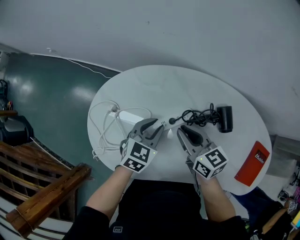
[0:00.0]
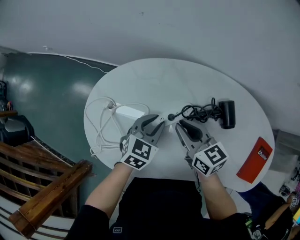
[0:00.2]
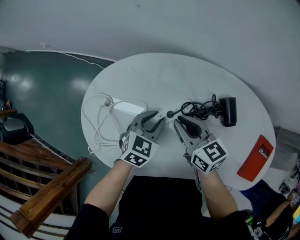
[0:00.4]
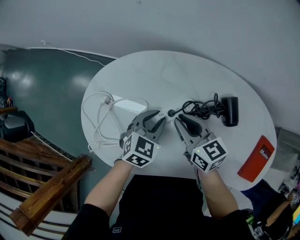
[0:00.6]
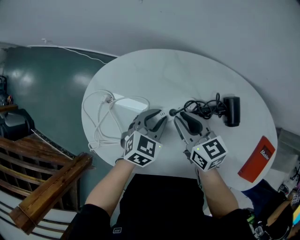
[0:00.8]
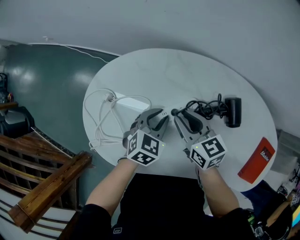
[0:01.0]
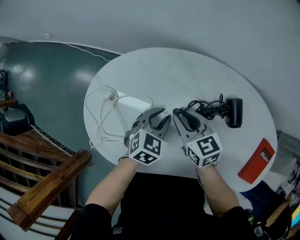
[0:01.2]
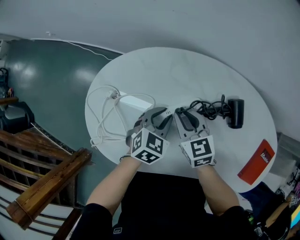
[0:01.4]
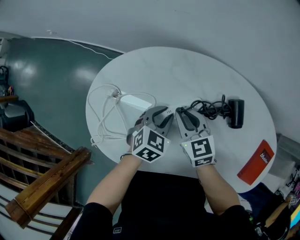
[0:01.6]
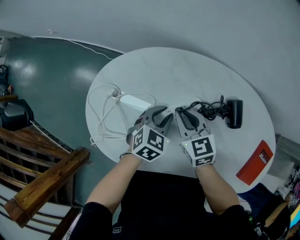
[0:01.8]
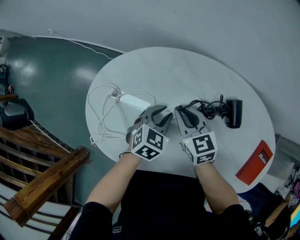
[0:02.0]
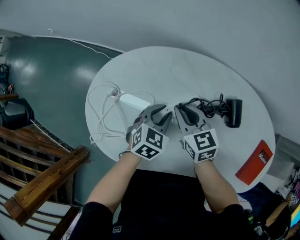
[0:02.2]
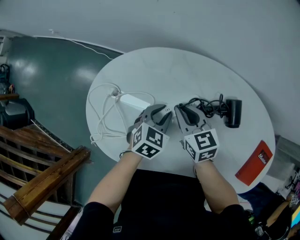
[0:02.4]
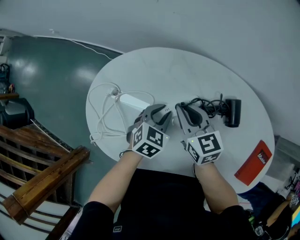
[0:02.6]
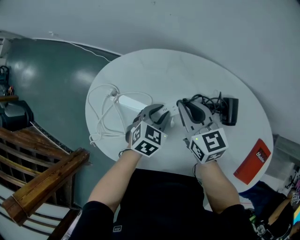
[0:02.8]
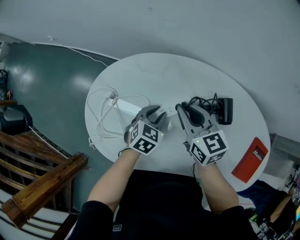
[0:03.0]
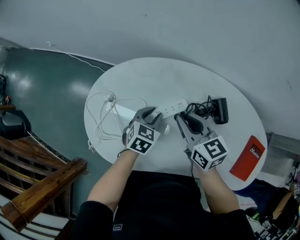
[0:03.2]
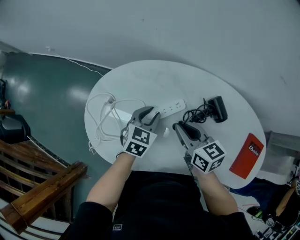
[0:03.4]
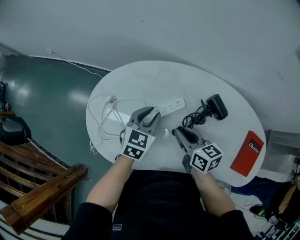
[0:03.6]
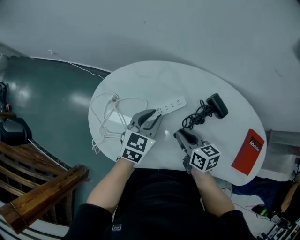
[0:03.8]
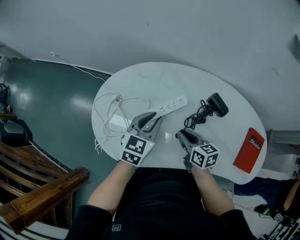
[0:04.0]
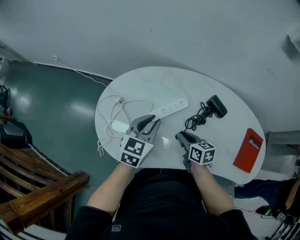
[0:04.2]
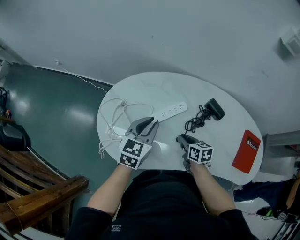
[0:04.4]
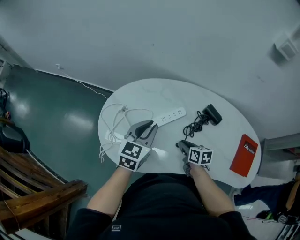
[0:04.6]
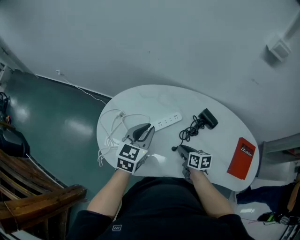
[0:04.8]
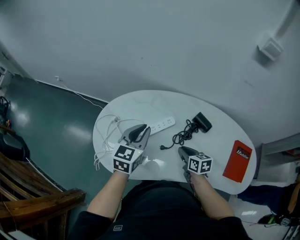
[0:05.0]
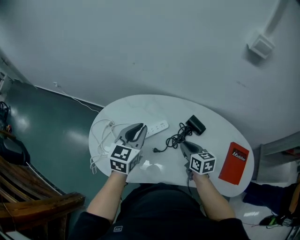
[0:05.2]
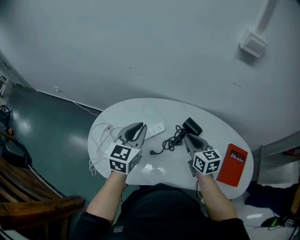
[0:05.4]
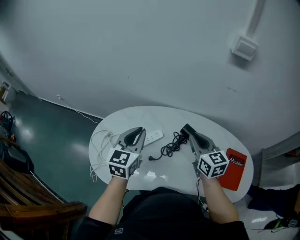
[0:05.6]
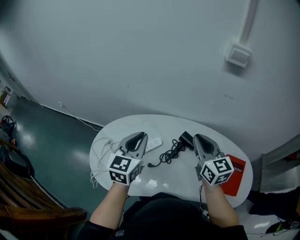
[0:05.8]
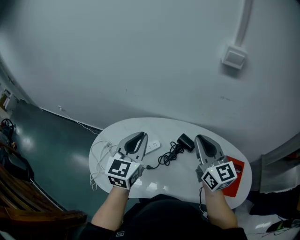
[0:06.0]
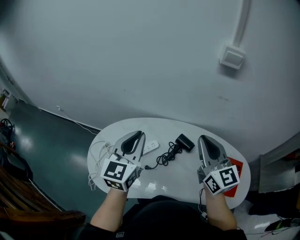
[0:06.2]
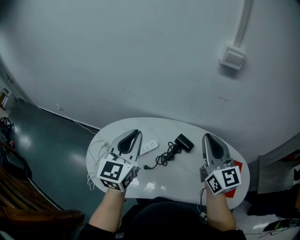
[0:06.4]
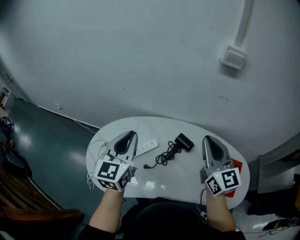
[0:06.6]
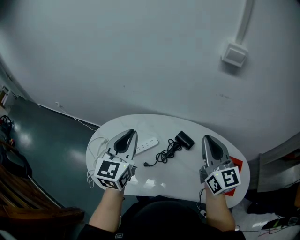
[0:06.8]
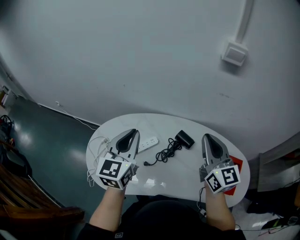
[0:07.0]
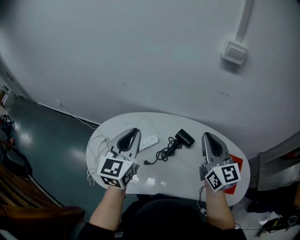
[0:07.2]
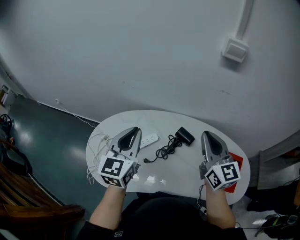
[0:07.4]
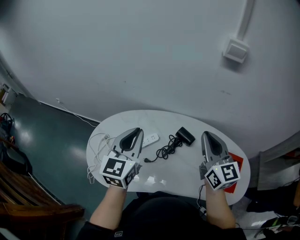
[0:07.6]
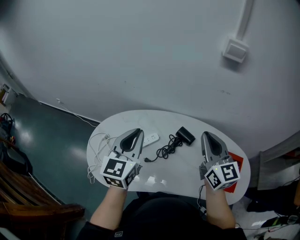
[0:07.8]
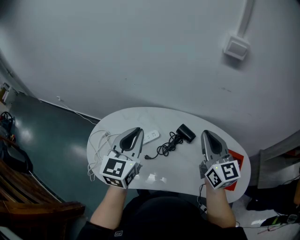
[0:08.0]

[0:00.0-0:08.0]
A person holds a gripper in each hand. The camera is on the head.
0:00.0 to 0:01.6: The right gripper moves downward, some 5 cm, and changes its angle by some 20 degrees.
0:01.6 to 0:03.2: The right gripper heads upward, covering approximately 10 cm.
0:03.2 to 0:04.8: The right gripper is displaced backward and downward by roughly 15 cm, and swivels roughly 30 degrees. The left gripper goes roughly 15 cm upward, and swivels roughly 30 degrees.
0:04.8 to 0:06.4: The left gripper is displaced upward and to the right by about 20 cm, and turns by about 20 degrees, while the right gripper travels upward and to the right by approximately 40 cm, and points its fingers about 40 degrees further upward.
0:06.4 to 0:08.0: There are only small adjustments of the grippers.

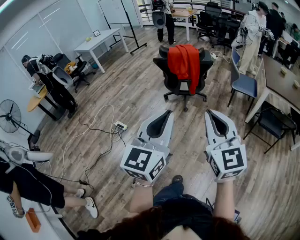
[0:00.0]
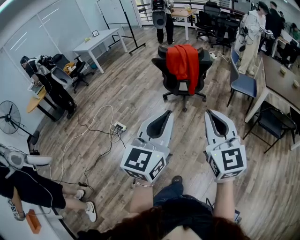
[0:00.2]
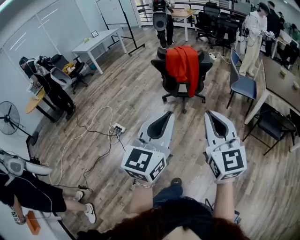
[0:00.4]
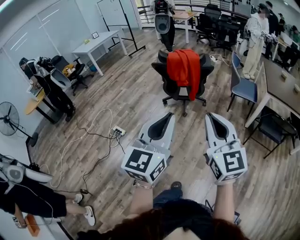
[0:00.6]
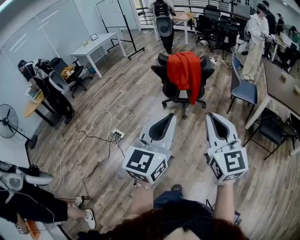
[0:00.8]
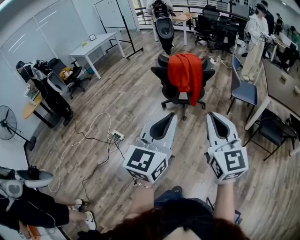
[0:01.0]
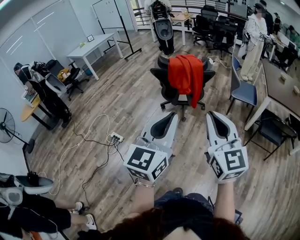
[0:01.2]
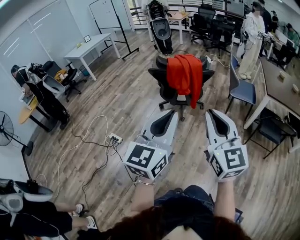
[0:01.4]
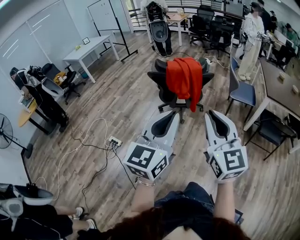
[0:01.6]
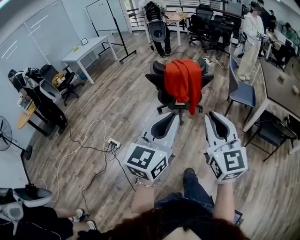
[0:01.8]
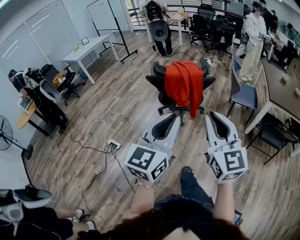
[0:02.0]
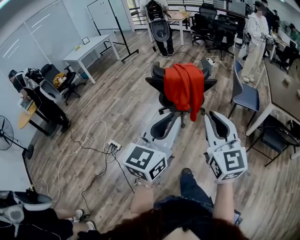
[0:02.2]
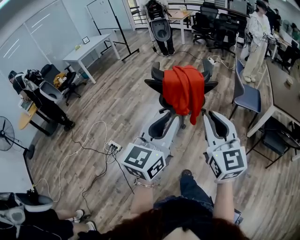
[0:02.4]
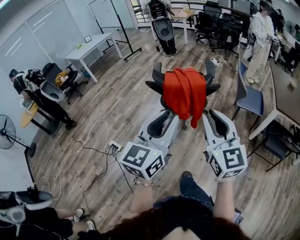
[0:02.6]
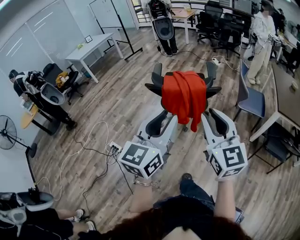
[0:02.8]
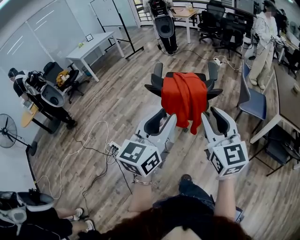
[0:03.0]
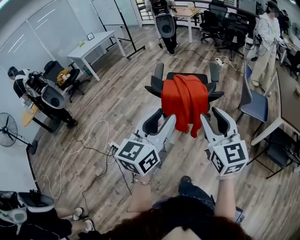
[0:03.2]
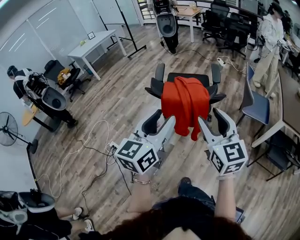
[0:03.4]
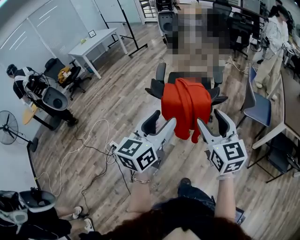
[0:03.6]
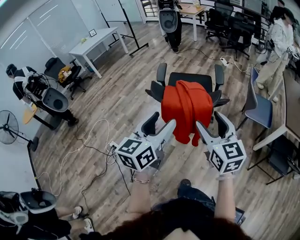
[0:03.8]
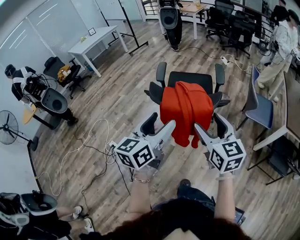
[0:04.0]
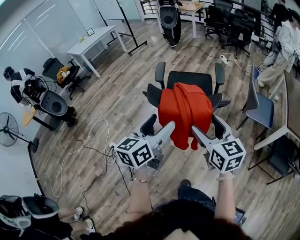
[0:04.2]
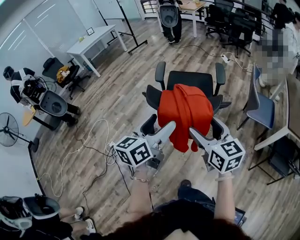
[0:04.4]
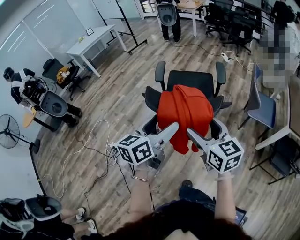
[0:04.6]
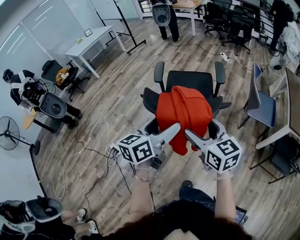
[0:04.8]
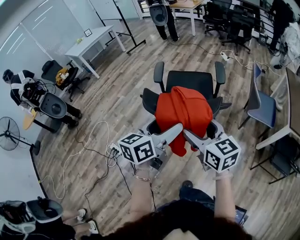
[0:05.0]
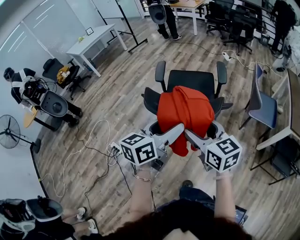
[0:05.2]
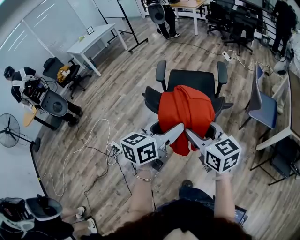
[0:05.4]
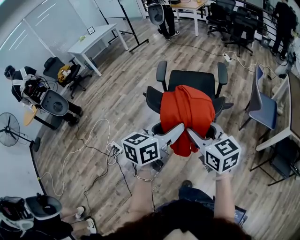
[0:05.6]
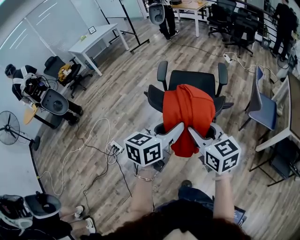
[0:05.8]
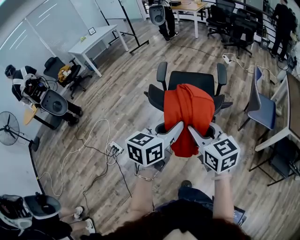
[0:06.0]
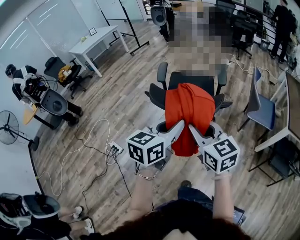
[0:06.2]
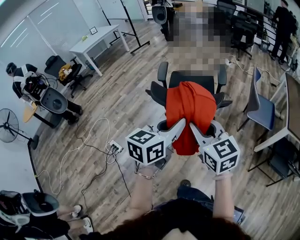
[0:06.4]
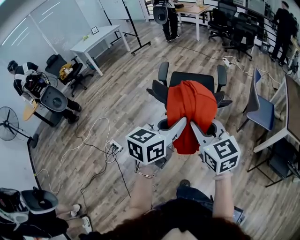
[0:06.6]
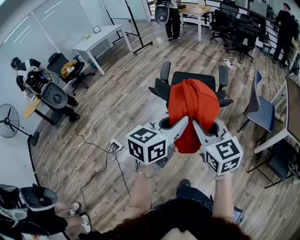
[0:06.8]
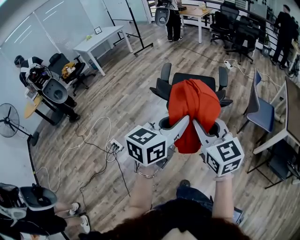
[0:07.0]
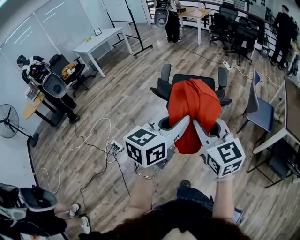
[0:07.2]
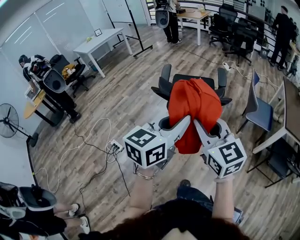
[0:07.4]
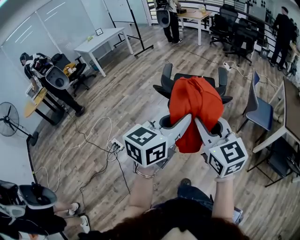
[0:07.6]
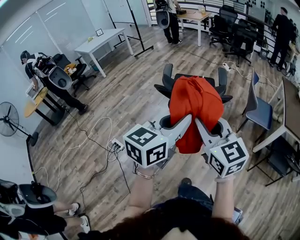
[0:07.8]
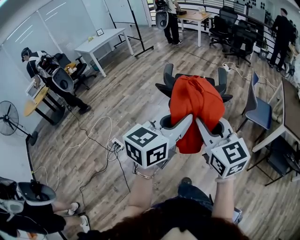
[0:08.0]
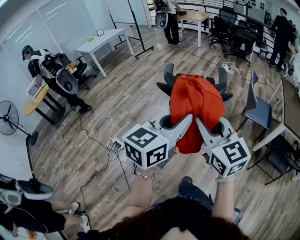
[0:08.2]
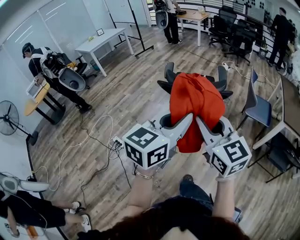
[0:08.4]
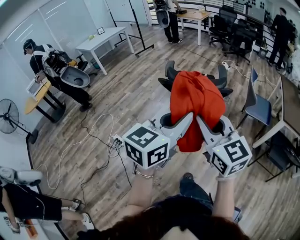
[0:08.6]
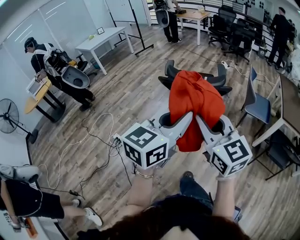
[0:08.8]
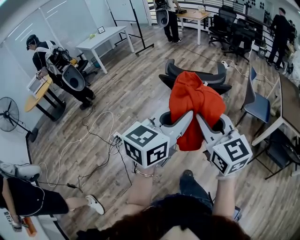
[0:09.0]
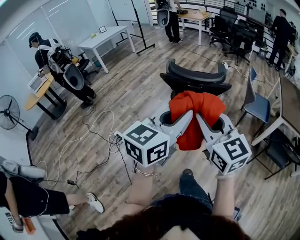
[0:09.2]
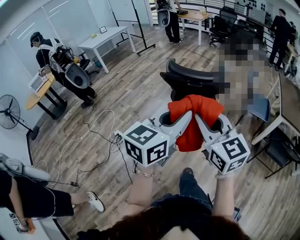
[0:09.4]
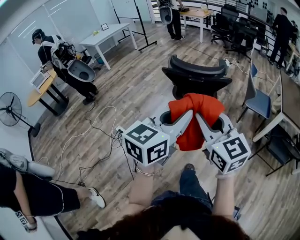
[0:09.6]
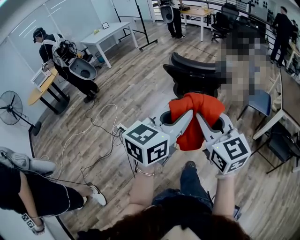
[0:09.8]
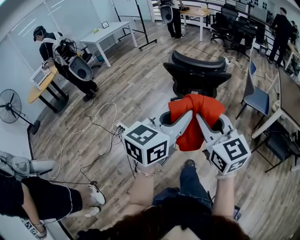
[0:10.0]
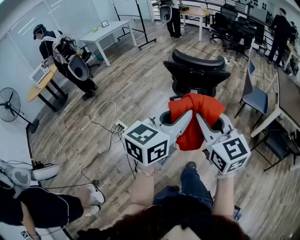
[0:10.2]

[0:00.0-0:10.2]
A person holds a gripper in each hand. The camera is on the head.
0:00.0 to 0:01.4: Both grippers move forward, roughly 15 cm.
0:01.4 to 0:03.0: The grippers both shift forward by about 25 cm.
0:03.0 to 0:04.4: The two grippers go about 20 cm forward and downward. The right gripper swivels roughly 20 degrees, and opens, while the left gripper turns by roughly 20 degrees, and opens its fingers.
0:04.4 to 0:05.8: The right gripper closes up. The left gripper moves about 5 cm, and closes its fingers.
0:05.8 to 0:07.2: The grippers both shift backward and upward by roughly 10 cm.
0:07.2 to 0:08.8: The two grippers go approximately 15 cm backward.
0:08.8 to 0:10.2: Both grippers move backward, some 15 cm.

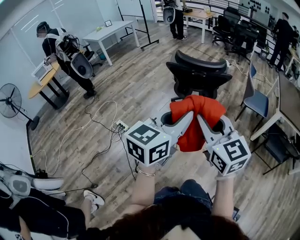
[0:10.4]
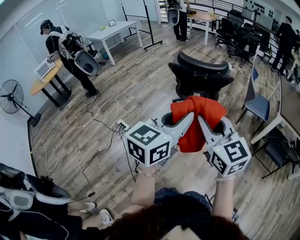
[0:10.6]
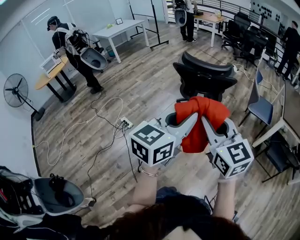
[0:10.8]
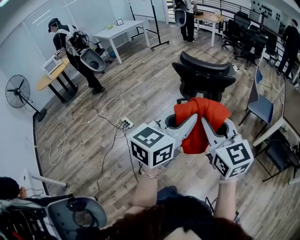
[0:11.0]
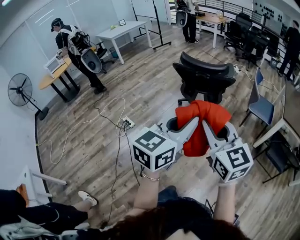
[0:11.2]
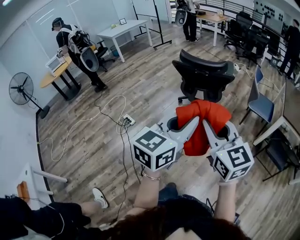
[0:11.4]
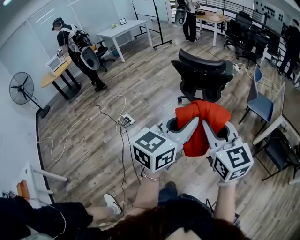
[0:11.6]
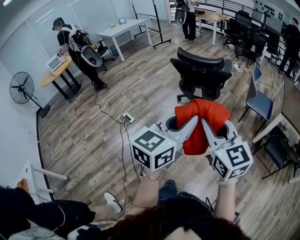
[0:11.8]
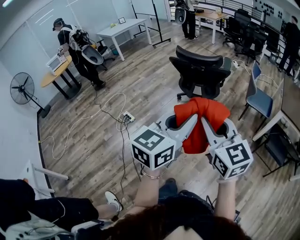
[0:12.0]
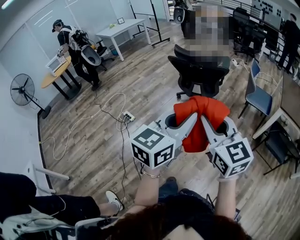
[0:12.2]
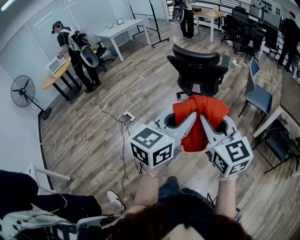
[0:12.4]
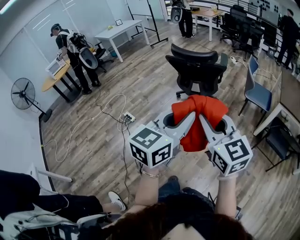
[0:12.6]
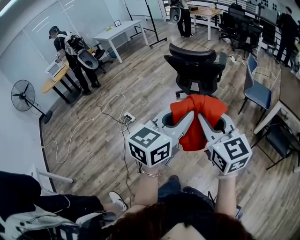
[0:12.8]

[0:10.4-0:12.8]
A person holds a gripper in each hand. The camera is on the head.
0:10.4 to 0:11.6: The grippers both shift to the right and backward by roughly 10 cm.
0:11.6 to 0:12.8: The right gripper shifts by about 5 cm; the left gripper moves about 5 cm.

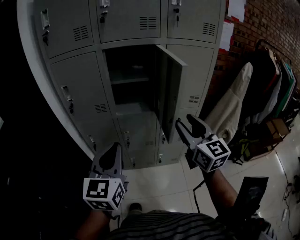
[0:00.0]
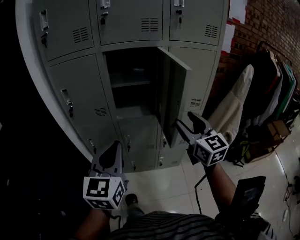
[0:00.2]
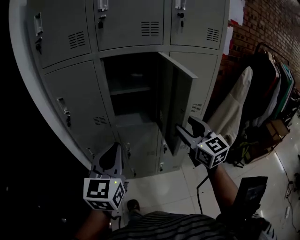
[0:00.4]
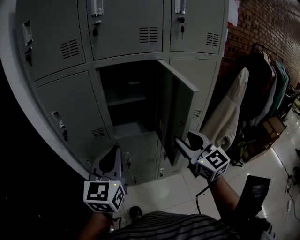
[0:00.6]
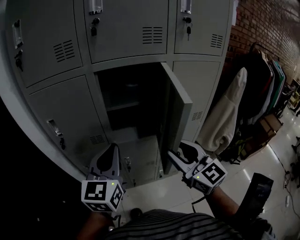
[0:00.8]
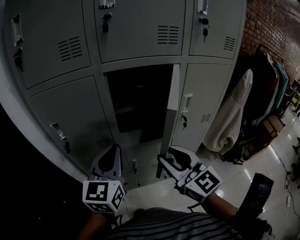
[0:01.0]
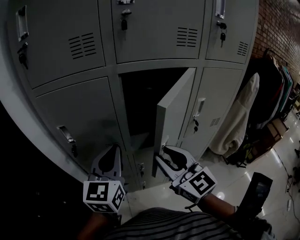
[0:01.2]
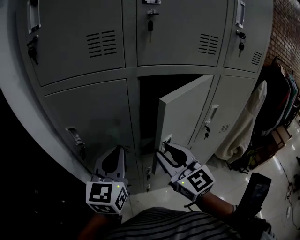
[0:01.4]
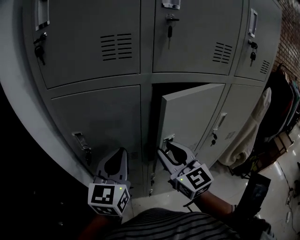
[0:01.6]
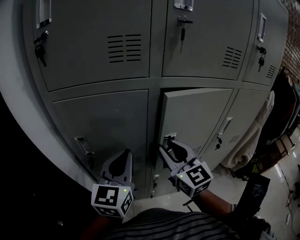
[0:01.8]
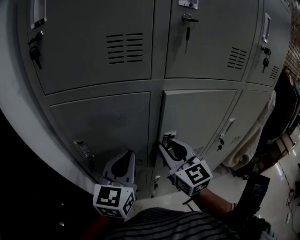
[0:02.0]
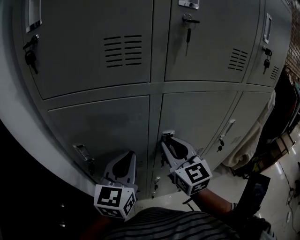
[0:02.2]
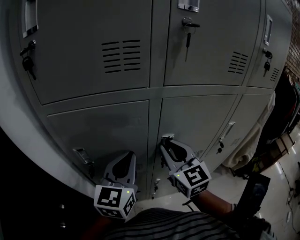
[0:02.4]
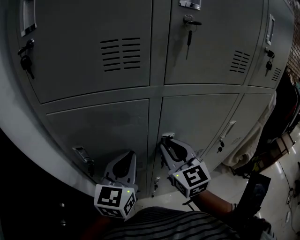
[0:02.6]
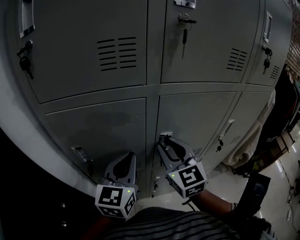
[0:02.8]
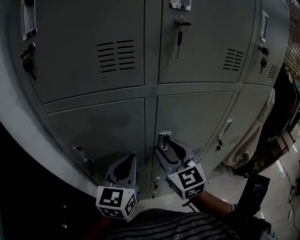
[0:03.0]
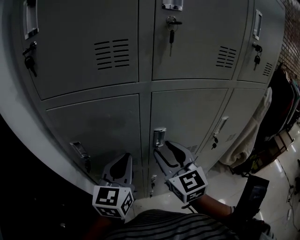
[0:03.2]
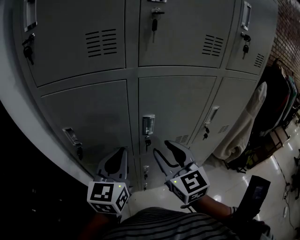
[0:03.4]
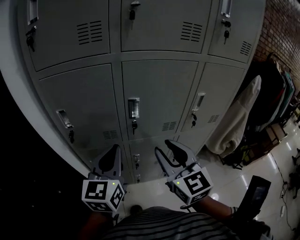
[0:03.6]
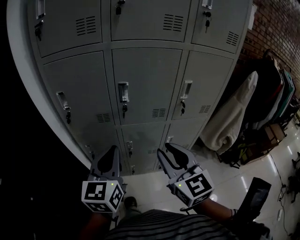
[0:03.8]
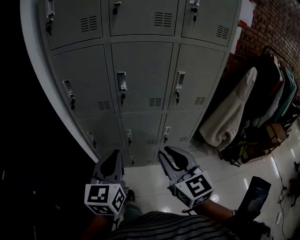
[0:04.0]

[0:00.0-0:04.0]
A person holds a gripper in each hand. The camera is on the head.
0:00.0 to 0:01.4: The left gripper moves forward and to the left, some 30 cm, while the right gripper moves to the left and forward, about 30 cm.
0:01.4 to 0:02.6: The right gripper travels forward by roughly 10 cm. The left gripper is displaced forward by roughly 5 cm.
0:02.6 to 0:04.0: The left gripper heads backward, covering approximately 30 cm, while the right gripper travels backward and to the right by roughly 40 cm, and opens, then closes once more.
